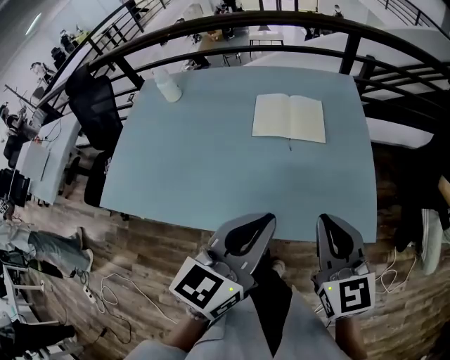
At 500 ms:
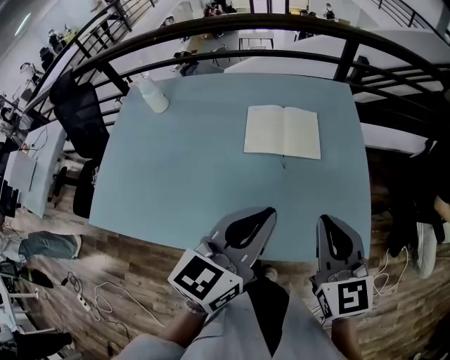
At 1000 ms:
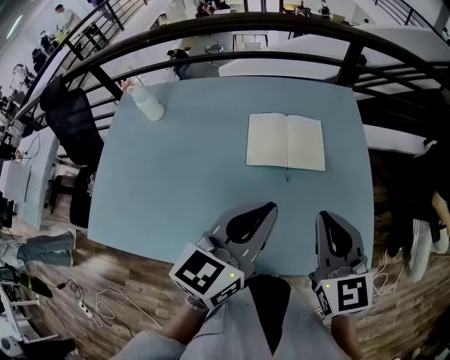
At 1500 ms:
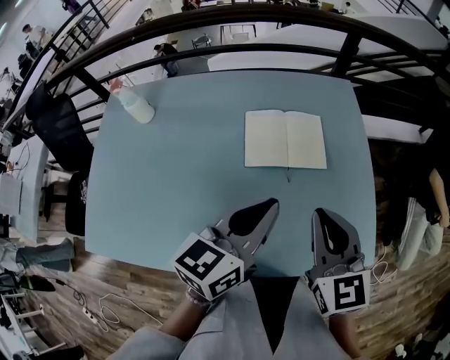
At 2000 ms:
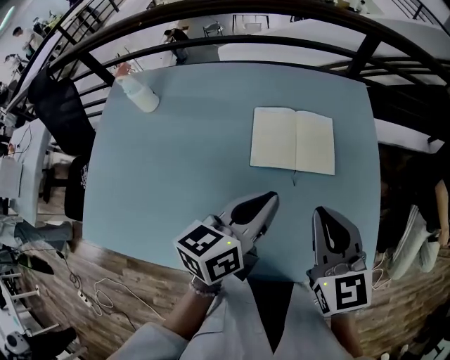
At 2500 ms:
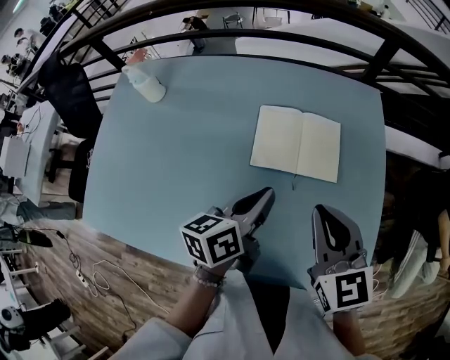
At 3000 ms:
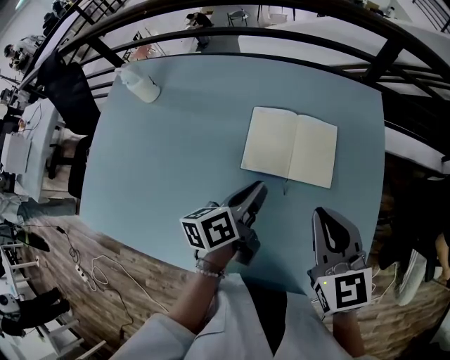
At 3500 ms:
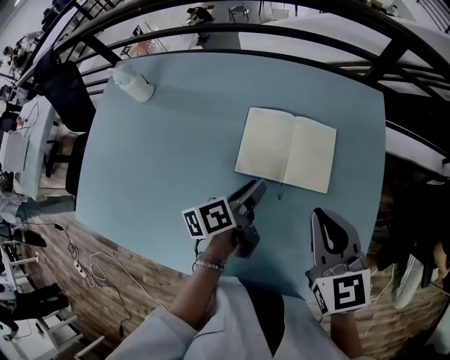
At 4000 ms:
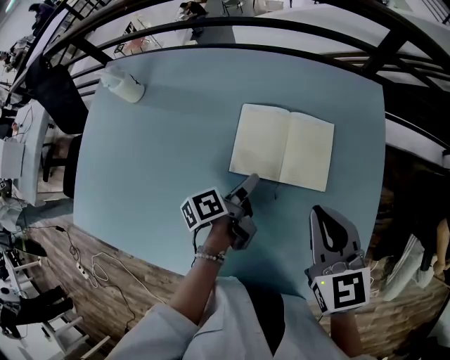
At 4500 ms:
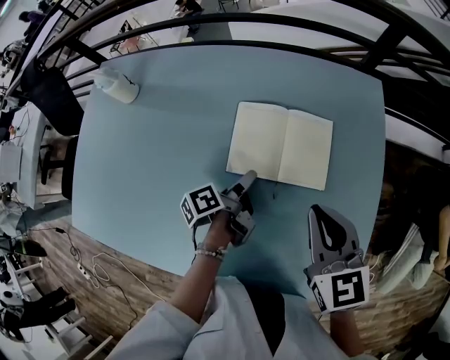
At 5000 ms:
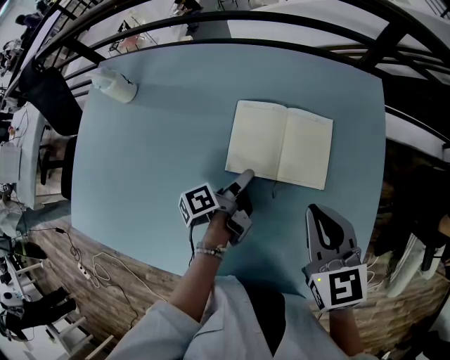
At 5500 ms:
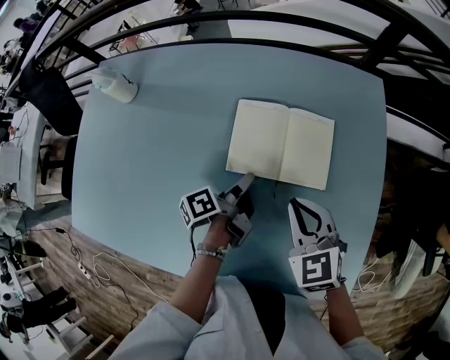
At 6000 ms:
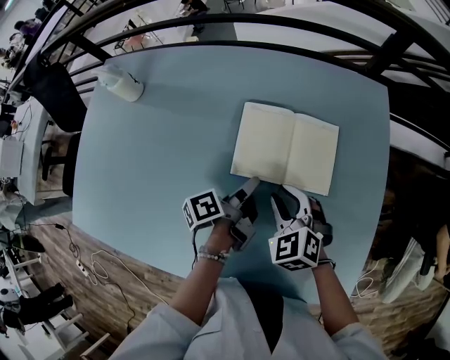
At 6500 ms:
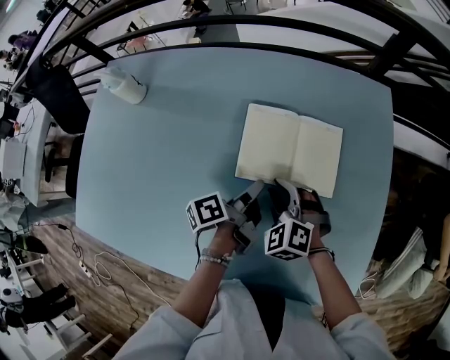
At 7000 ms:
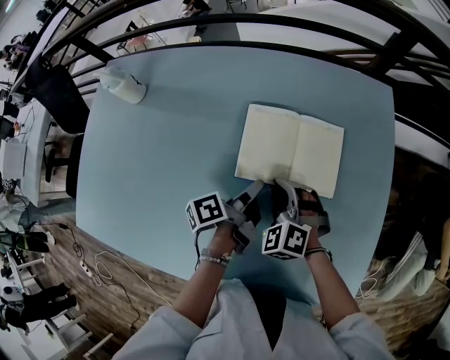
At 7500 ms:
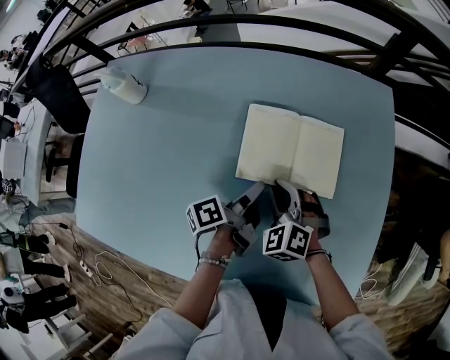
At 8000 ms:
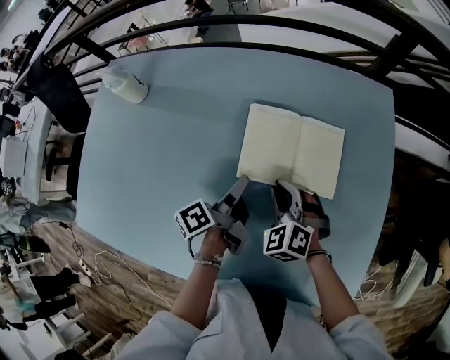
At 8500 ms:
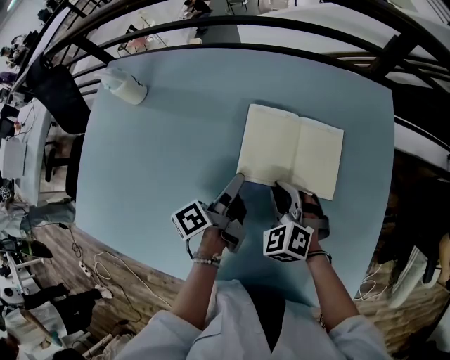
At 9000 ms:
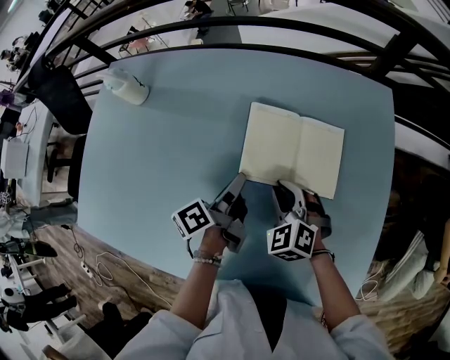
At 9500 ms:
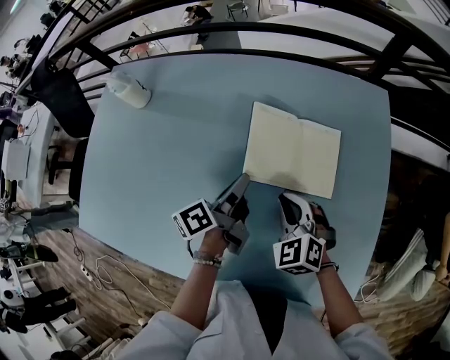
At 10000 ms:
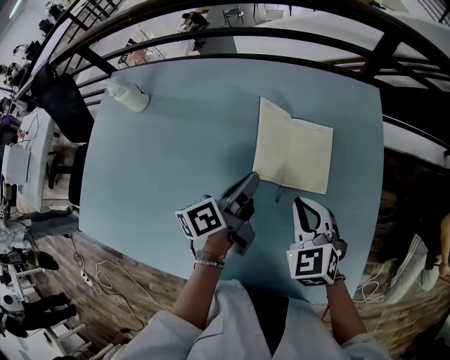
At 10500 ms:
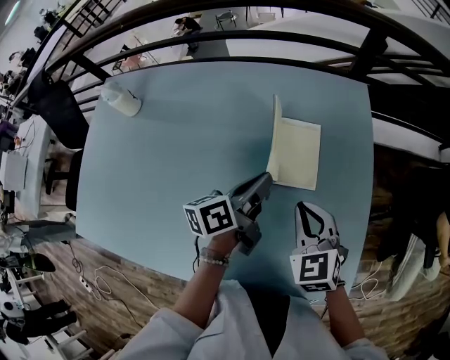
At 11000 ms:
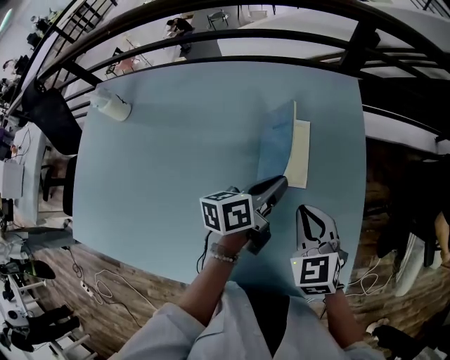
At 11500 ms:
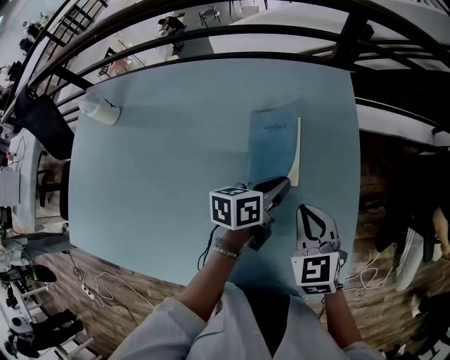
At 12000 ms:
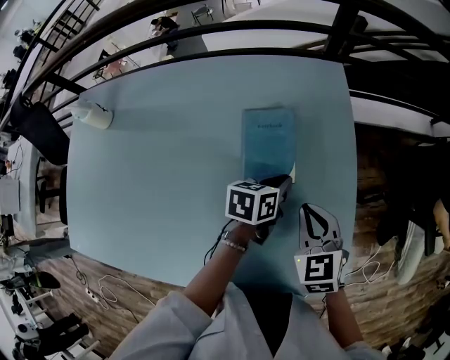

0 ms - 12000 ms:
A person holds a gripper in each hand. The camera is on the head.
0 ms - 2000 ms: The right gripper goes roughly 20 cm forward and to the left; the left gripper heads forward, covering approximately 20 cm, and changes its angle by approximately 30 degrees.
2000 ms - 4000 ms: The left gripper heads downward and forward, covering approximately 20 cm, rolls counterclockwise, seen from behind, by about 50 degrees, and opens up. The right gripper moves forward and to the right, about 10 cm.
4000 ms - 6000 ms: The left gripper closes. Meanwhile the right gripper heads downward and to the left, covering about 15 cm, and changes its angle by some 40 degrees.
6000 ms - 8000 ms: The left gripper opens.
8000 ms - 10000 ms: Both grippers move upward and to the right, some 10 cm. The left gripper turns by approximately 20 degrees, and closes.
10000 ms - 12000 ms: The left gripper shifts roughly 20 cm to the right and downward, and swivels about 40 degrees; the right gripper moves to the right, approximately 10 cm.

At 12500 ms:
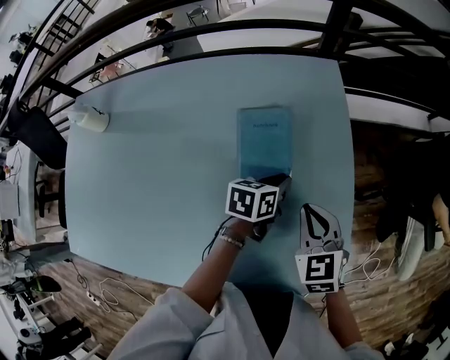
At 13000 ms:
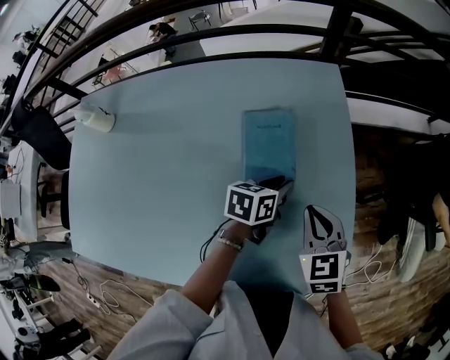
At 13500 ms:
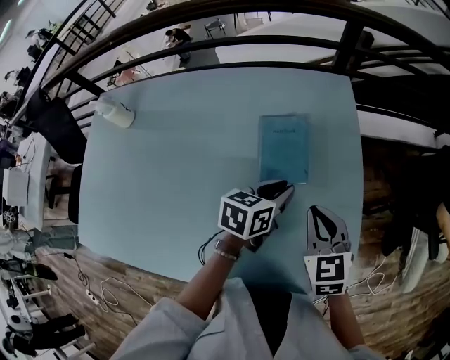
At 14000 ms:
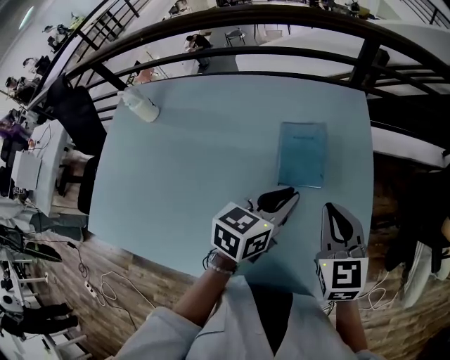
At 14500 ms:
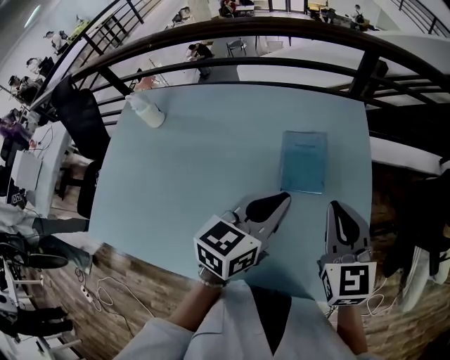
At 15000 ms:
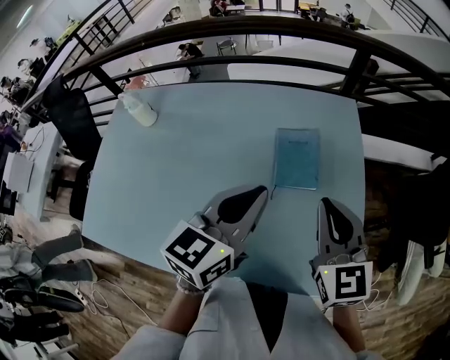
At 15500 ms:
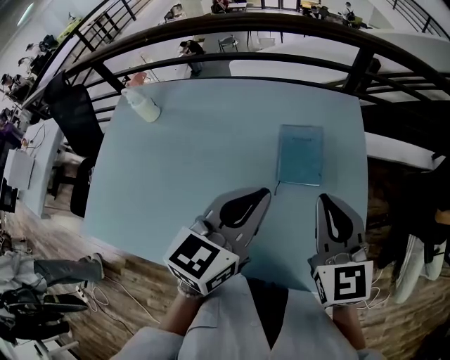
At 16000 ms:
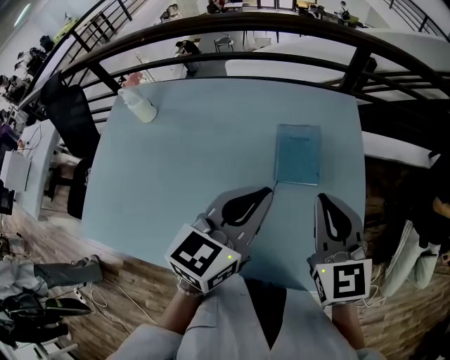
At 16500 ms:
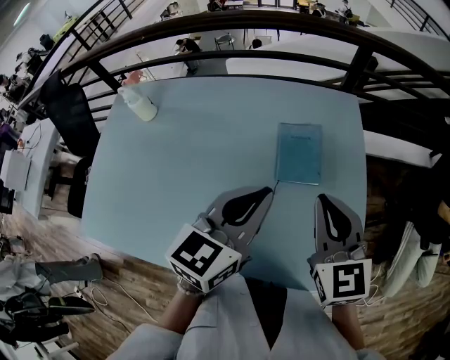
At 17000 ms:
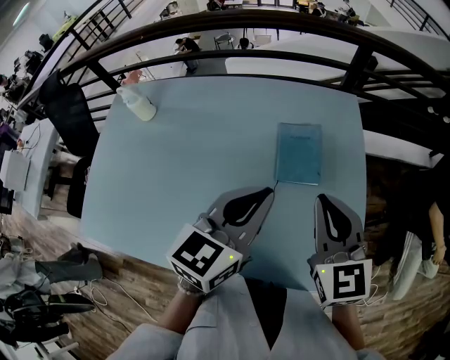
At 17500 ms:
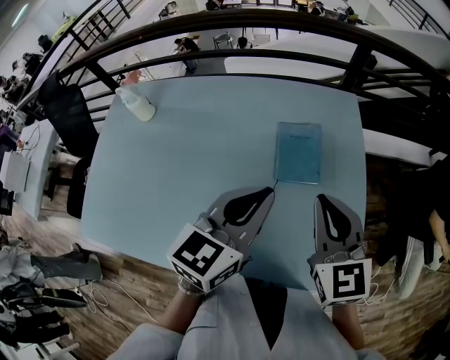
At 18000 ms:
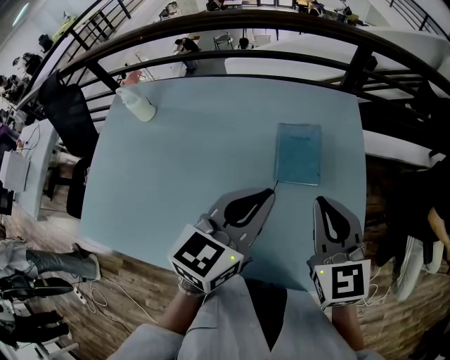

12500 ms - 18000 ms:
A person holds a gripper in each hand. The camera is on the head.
12500 ms - 14500 ms: The left gripper goes about 25 cm upward, to the left and backward, and turns by about 30 degrees, while the right gripper goes approximately 15 cm upward, and changes its angle by roughly 20 degrees.
14500 ms - 16000 ms: The left gripper goes some 5 cm upward; the right gripper changes place by roughly 5 cm.
16000 ms - 18000 ms: The two grippers keep their place.

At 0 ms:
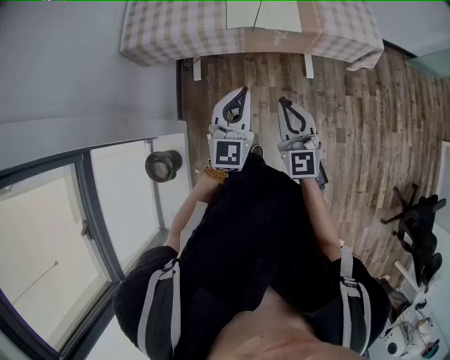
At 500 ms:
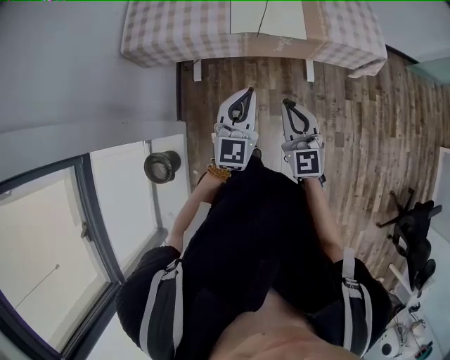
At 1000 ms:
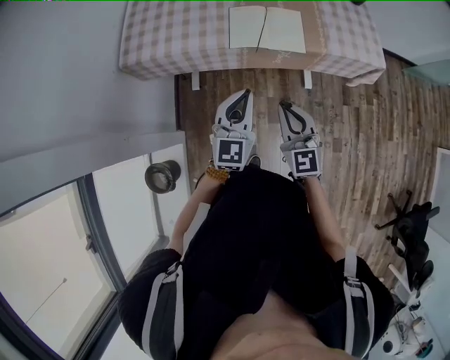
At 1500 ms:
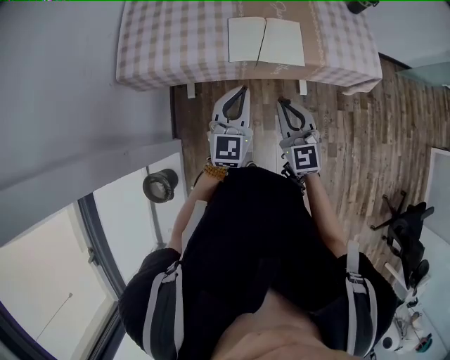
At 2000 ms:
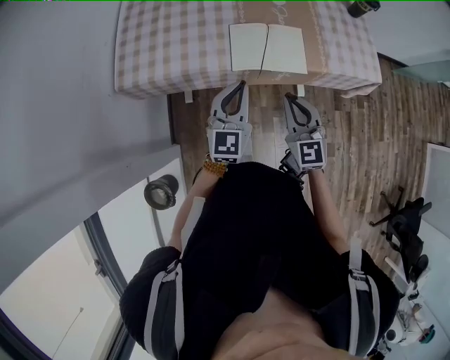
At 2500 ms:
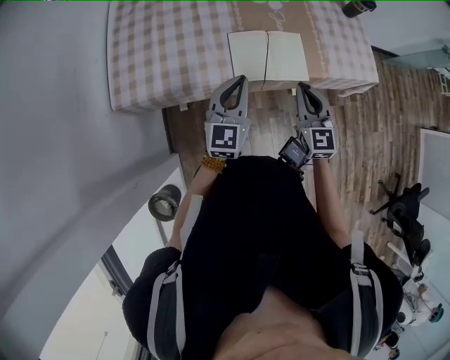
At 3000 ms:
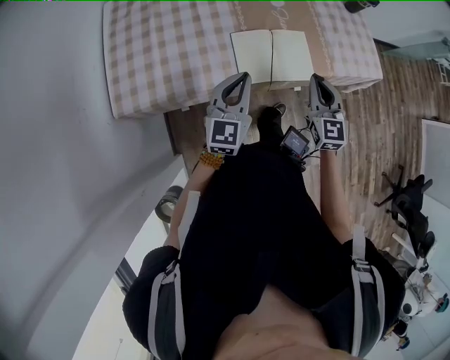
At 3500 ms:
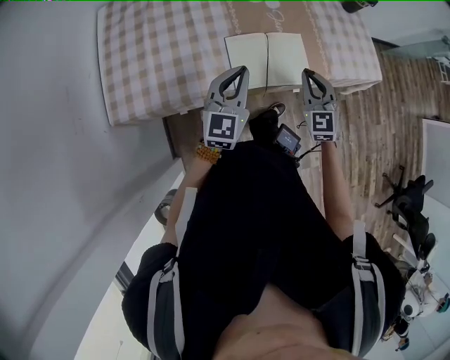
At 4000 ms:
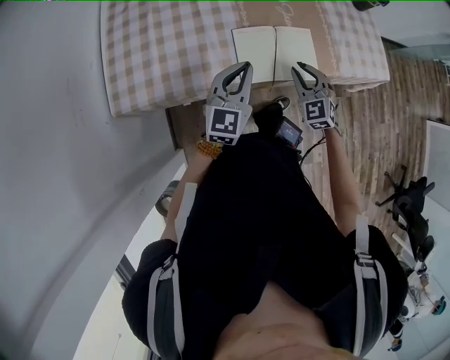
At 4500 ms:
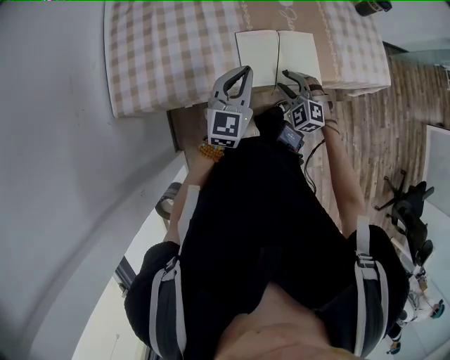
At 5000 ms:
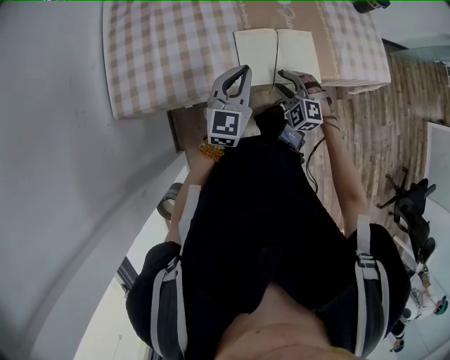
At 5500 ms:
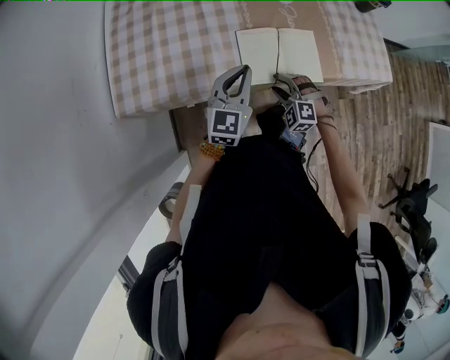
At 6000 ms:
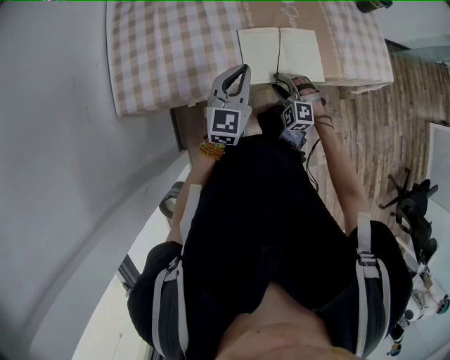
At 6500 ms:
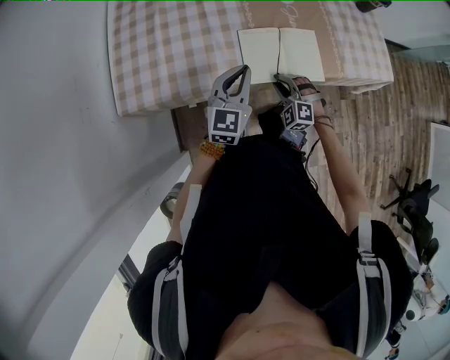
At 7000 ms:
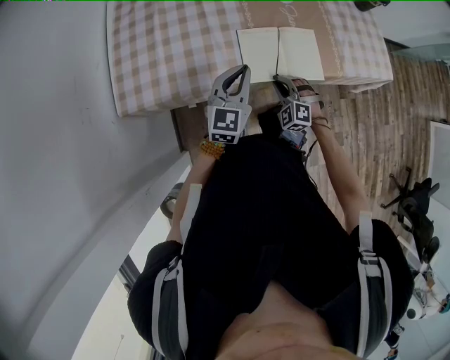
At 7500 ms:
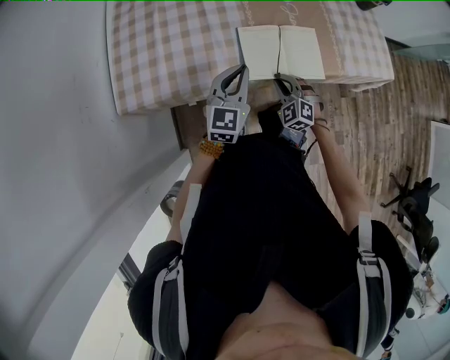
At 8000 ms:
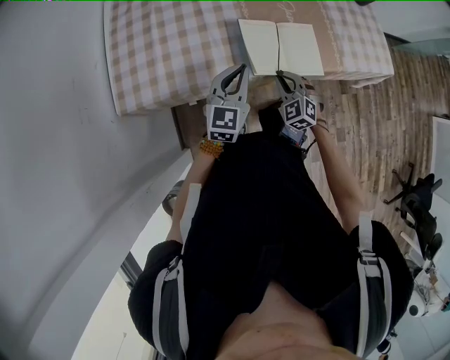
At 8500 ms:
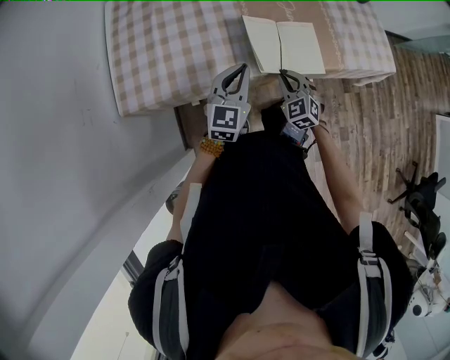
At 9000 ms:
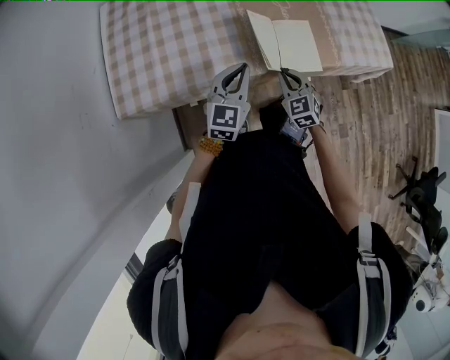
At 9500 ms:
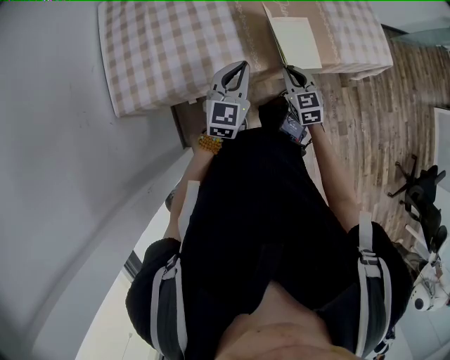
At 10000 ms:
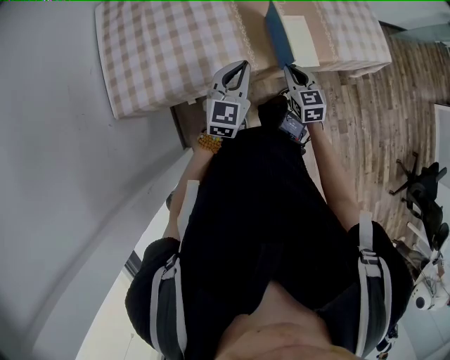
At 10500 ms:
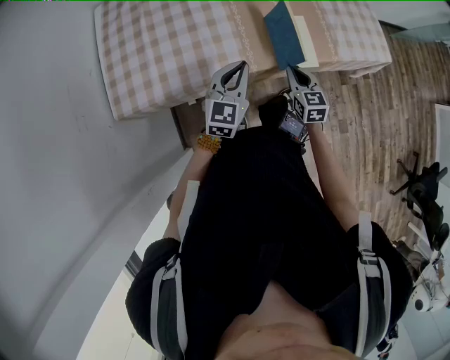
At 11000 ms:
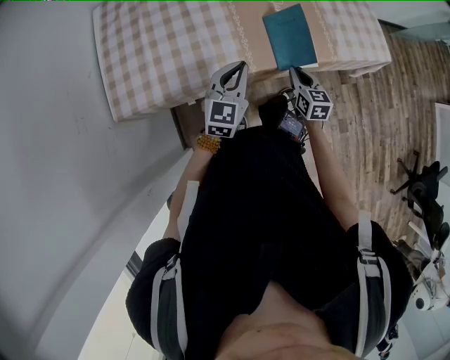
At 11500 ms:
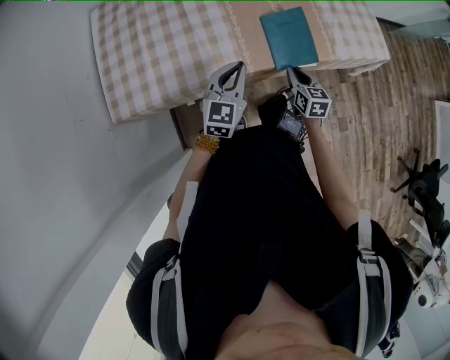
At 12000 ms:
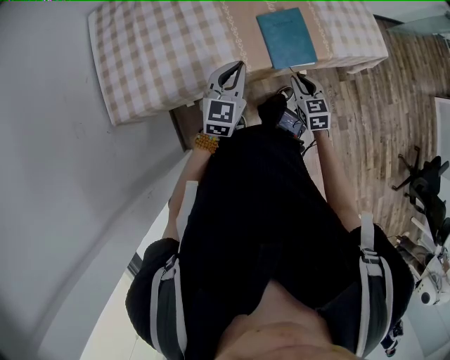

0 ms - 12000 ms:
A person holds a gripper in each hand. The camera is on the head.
0 ms - 2000 ms: Both grippers travel together forward, approximately 20 cm.
2000 ms - 4000 ms: The right gripper is displaced forward and downward by some 20 cm, and swivels approximately 20 degrees; the left gripper goes some 15 cm forward.
4000 ms - 6000 ms: The right gripper moves downward and to the left, some 10 cm, and changes its angle by approximately 40 degrees.
6000 ms - 8000 ms: The right gripper rotates approximately 30 degrees, and closes its fingers.
8000 ms - 10000 ms: The right gripper is displaced to the right by roughly 5 cm, and rolls clockwise, seen from behind, by about 40 degrees.
10000 ms - 12000 ms: The right gripper goes about 5 cm to the right.
